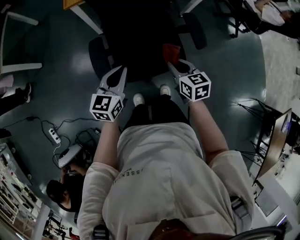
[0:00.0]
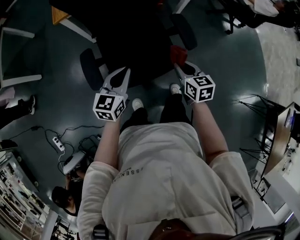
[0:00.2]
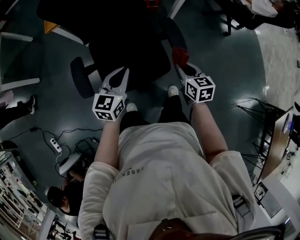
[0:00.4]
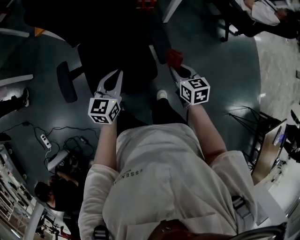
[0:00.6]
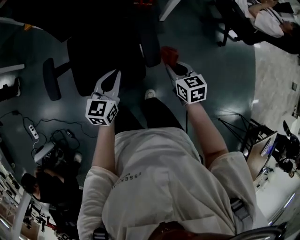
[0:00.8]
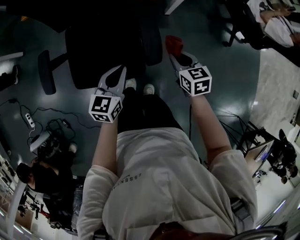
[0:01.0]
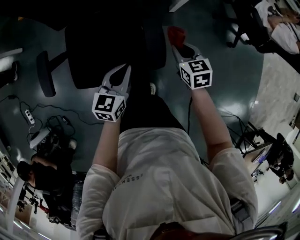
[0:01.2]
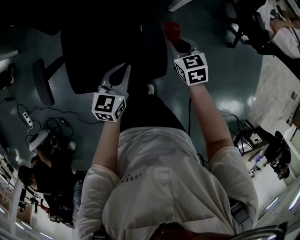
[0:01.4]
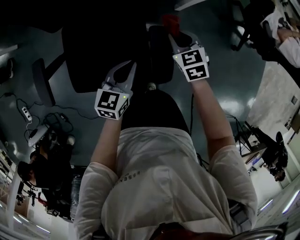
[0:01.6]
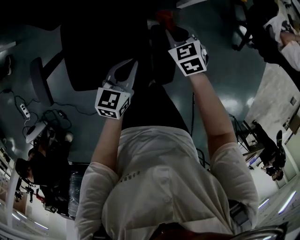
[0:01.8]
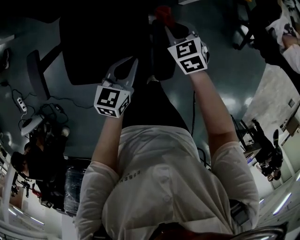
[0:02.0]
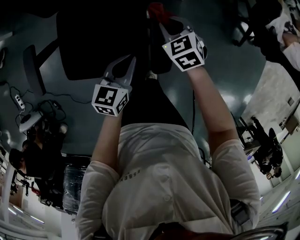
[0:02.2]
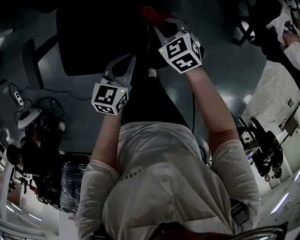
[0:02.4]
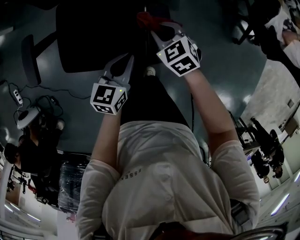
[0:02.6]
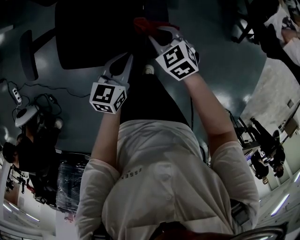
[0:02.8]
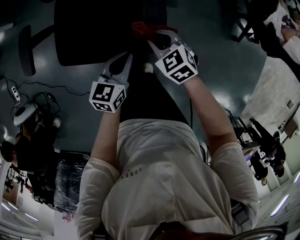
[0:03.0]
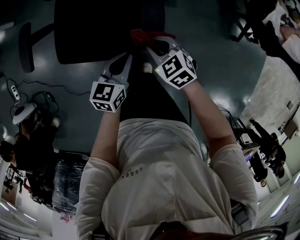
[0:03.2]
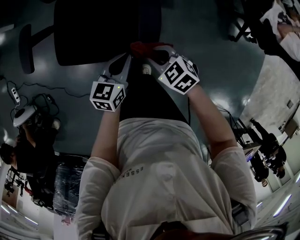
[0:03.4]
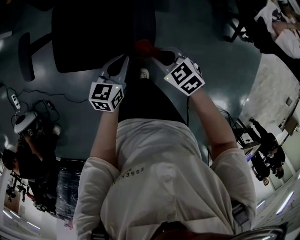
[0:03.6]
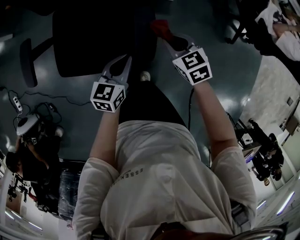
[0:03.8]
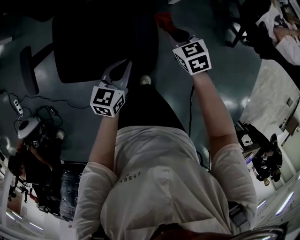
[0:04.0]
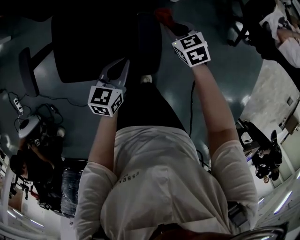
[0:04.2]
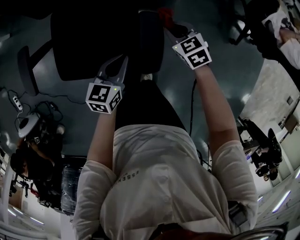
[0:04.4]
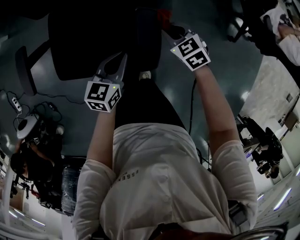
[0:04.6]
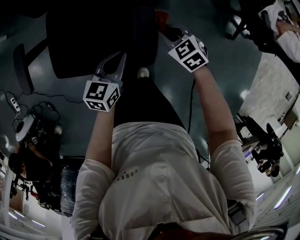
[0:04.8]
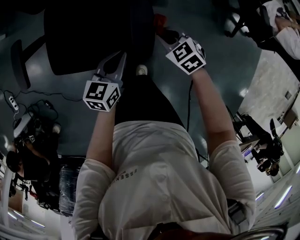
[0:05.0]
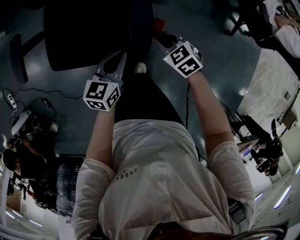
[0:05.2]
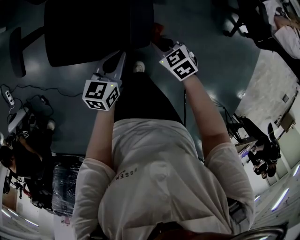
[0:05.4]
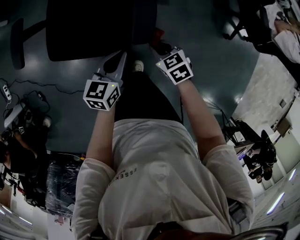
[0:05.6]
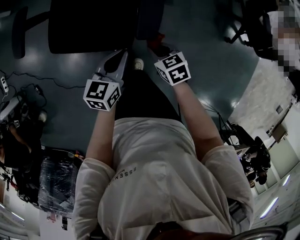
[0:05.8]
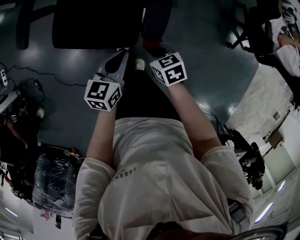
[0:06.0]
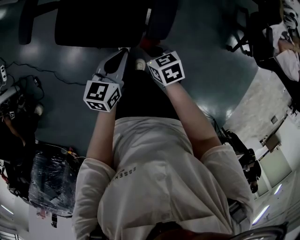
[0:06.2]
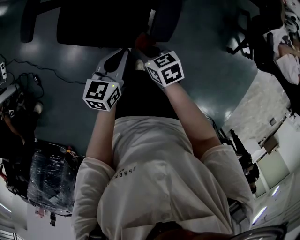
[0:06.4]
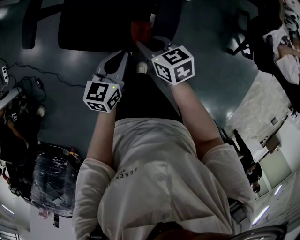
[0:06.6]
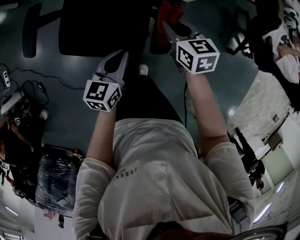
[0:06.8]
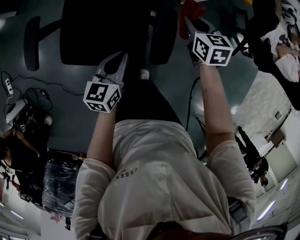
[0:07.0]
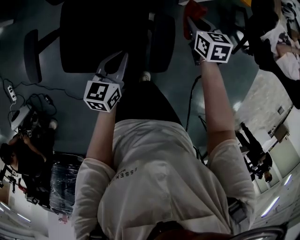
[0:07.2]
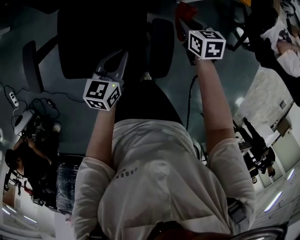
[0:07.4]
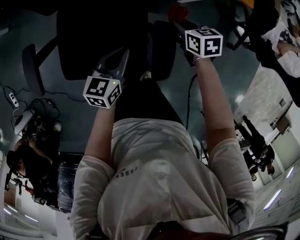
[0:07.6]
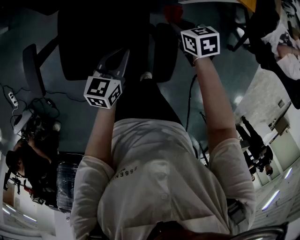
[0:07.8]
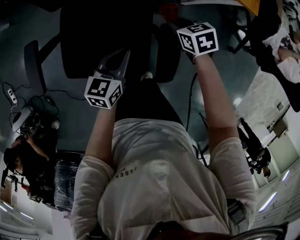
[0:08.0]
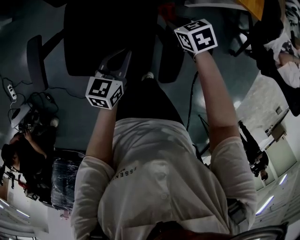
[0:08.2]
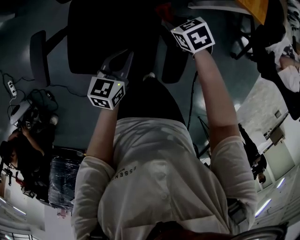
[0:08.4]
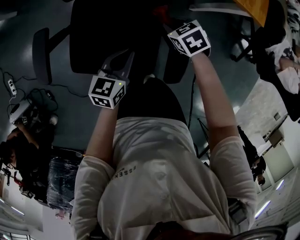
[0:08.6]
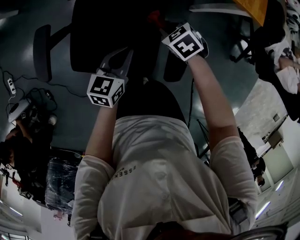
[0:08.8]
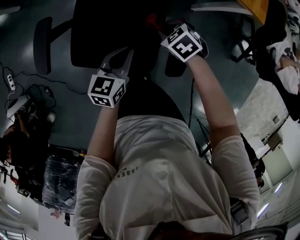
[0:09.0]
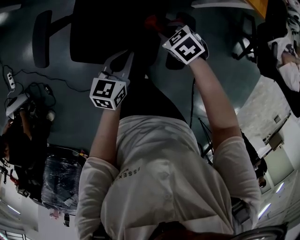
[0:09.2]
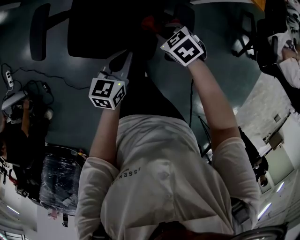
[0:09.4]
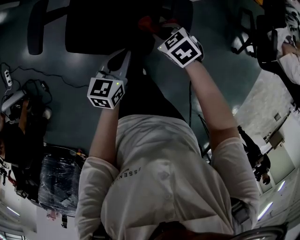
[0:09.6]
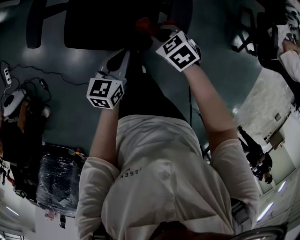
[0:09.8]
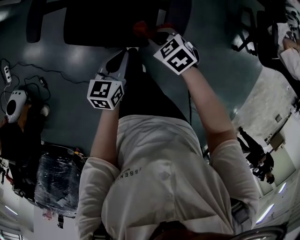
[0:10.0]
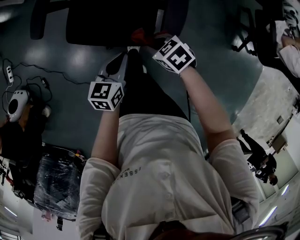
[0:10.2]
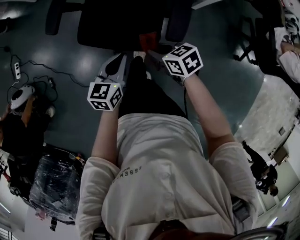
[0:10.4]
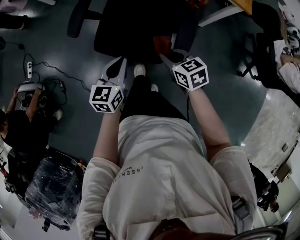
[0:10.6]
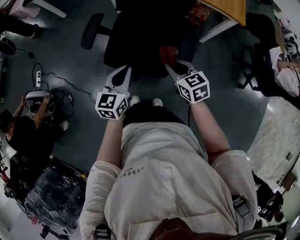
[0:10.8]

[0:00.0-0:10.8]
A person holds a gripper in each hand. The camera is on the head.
0:00.0 to 0:01.6: The right gripper is displaced forward and to the right by roughly 35 cm, and turns by roughly 30 degrees; the left gripper travels to the right and forward by about 35 cm.
0:01.6 to 0:03.0: The two grippers go roughly 10 cm backward. The right gripper swivels some 20 degrees.
0:03.0 to 0:04.6: The right gripper is displaced forward and to the right by approximately 10 cm. The left gripper is displaced forward by about 5 cm.
0:04.6 to 0:06.2: The right gripper is displaced backward and to the left by roughly 20 cm. The left gripper goes approximately 10 cm backward.
0:06.2 to 0:07.8: The left gripper shifts by roughly 20 cm; the right gripper goes upward and returns, about 10 cm each way.
0:07.8 to 0:09.2: The right gripper shifts some 15 cm to the left and backward, and turns by about 40 degrees; the left gripper is displaced backward and to the left by approximately 10 cm.
0:09.2 to 0:10.8: The left gripper moves upward, to the left and backward, some 20 cm, and turns by about 20 degrees. The right gripper shifts roughly 25 cm upward, backward and to the left, and angles its fingers upward, by about 30 degrees.

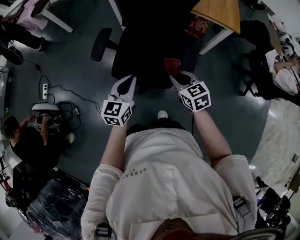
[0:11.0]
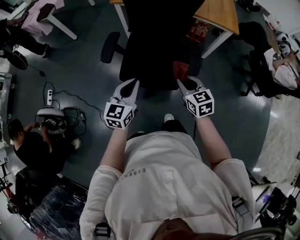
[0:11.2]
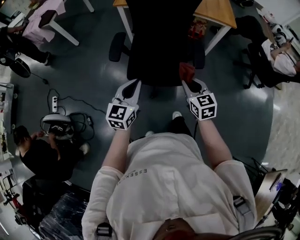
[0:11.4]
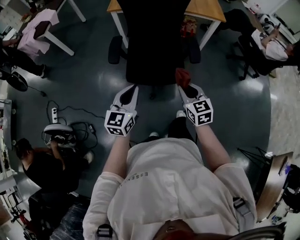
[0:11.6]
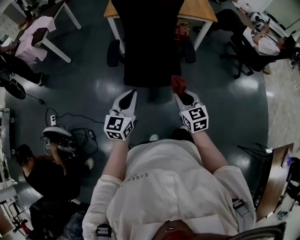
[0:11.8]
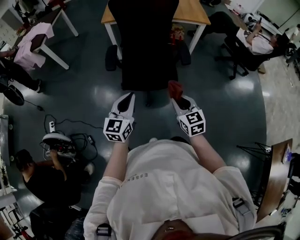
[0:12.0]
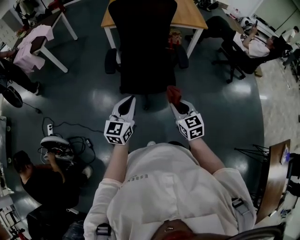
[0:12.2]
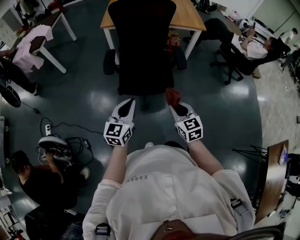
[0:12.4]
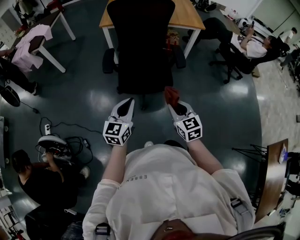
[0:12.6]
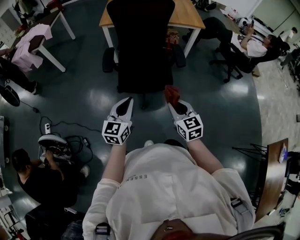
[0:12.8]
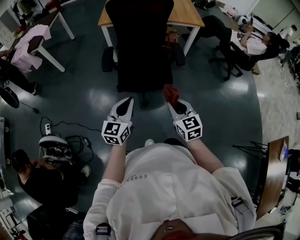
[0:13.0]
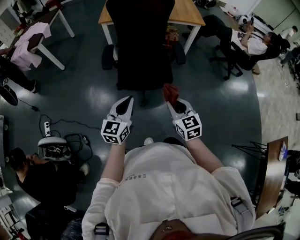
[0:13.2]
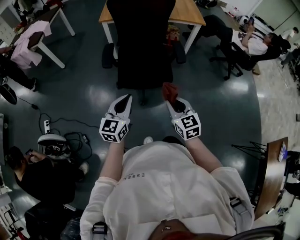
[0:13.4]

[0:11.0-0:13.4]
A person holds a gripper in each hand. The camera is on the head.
0:11.0 to 0:12.2: The left gripper shifts approximately 20 cm backward, to the left and upward, while the right gripper travels backward and to the left by about 25 cm, and turns by about 30 degrees.
0:12.2 to 0:13.4: The grippers move only a little.

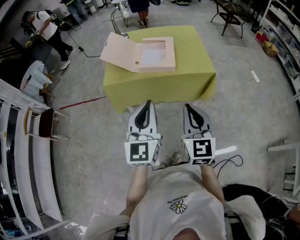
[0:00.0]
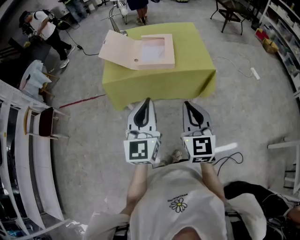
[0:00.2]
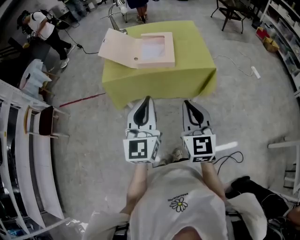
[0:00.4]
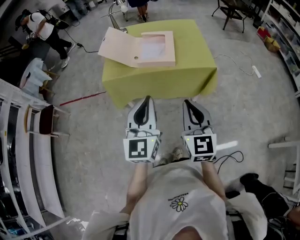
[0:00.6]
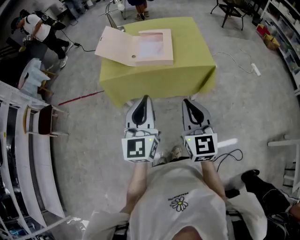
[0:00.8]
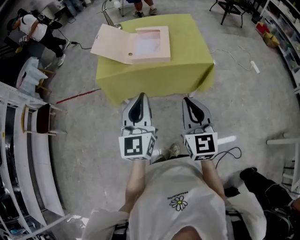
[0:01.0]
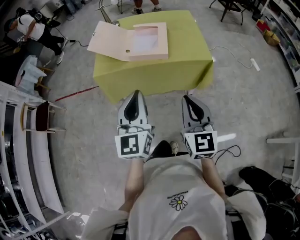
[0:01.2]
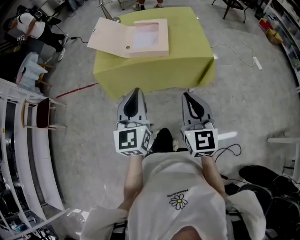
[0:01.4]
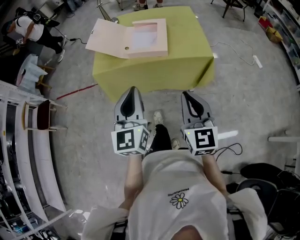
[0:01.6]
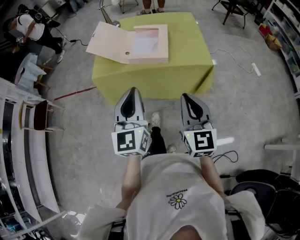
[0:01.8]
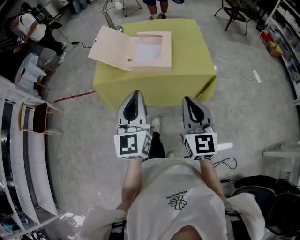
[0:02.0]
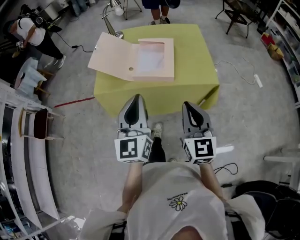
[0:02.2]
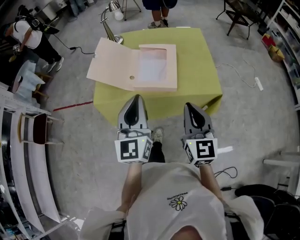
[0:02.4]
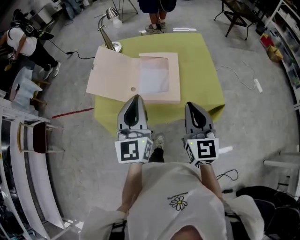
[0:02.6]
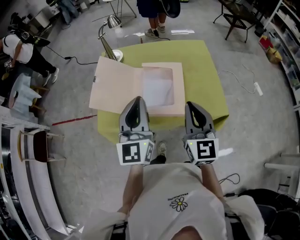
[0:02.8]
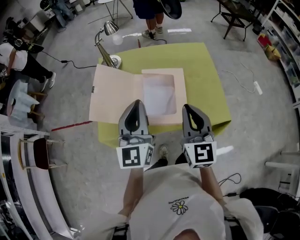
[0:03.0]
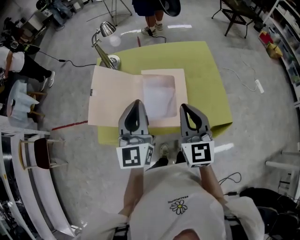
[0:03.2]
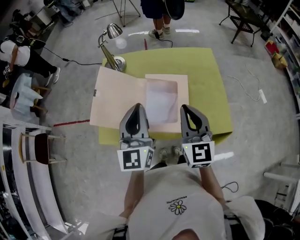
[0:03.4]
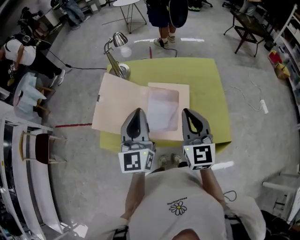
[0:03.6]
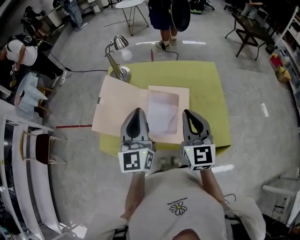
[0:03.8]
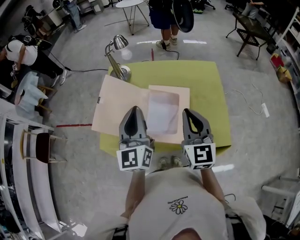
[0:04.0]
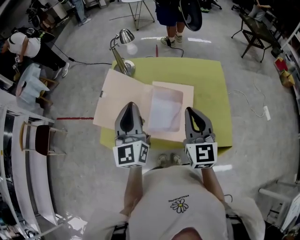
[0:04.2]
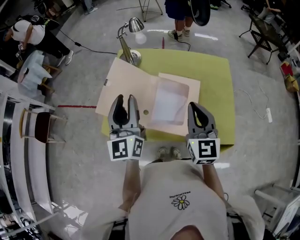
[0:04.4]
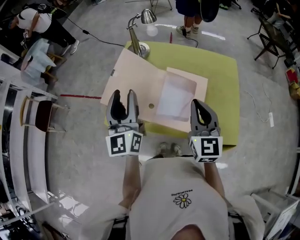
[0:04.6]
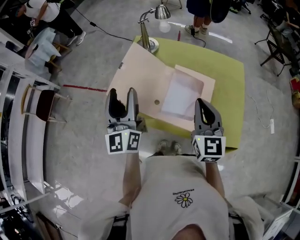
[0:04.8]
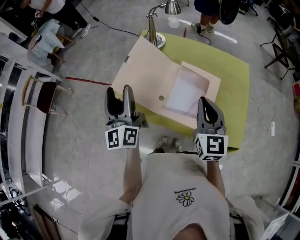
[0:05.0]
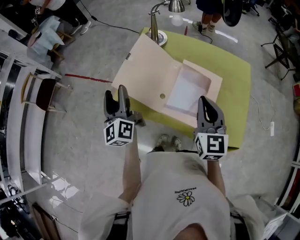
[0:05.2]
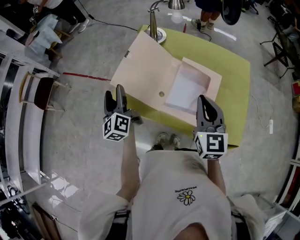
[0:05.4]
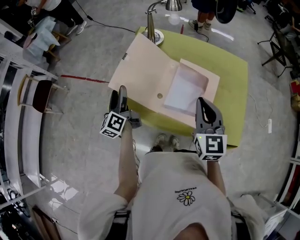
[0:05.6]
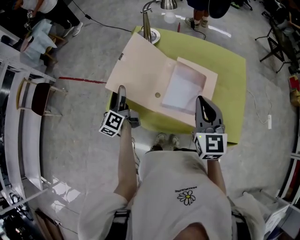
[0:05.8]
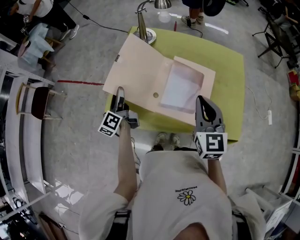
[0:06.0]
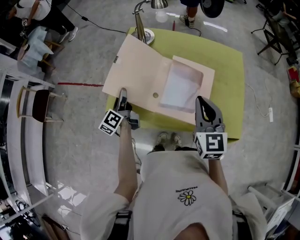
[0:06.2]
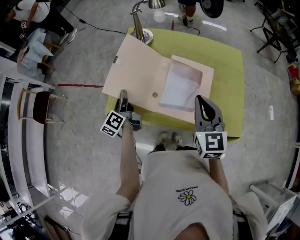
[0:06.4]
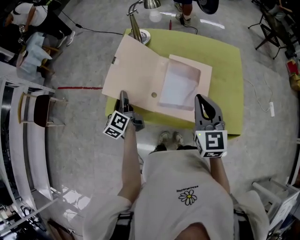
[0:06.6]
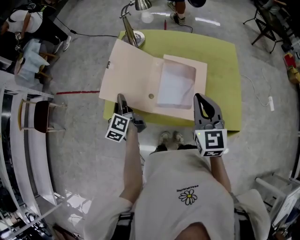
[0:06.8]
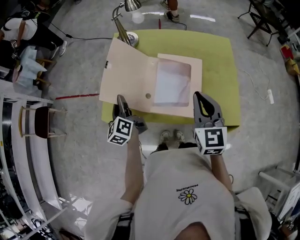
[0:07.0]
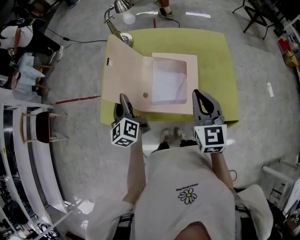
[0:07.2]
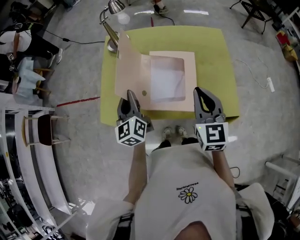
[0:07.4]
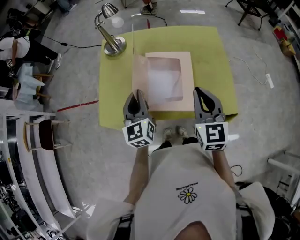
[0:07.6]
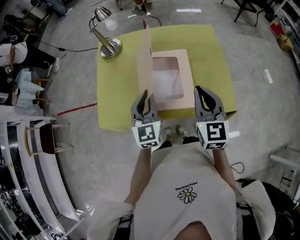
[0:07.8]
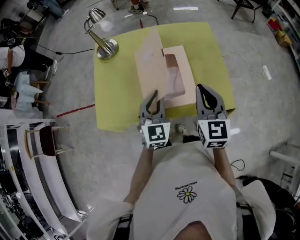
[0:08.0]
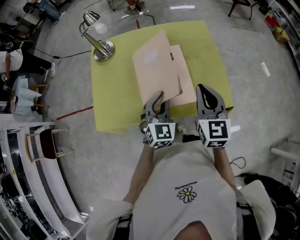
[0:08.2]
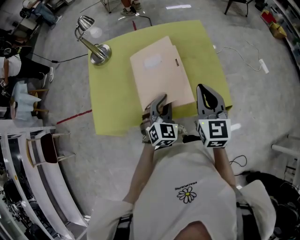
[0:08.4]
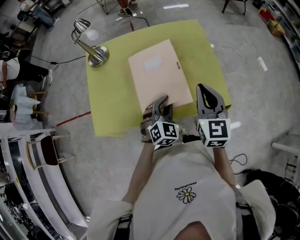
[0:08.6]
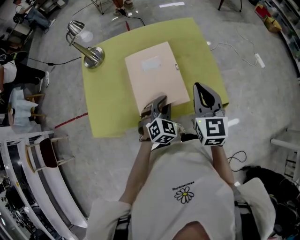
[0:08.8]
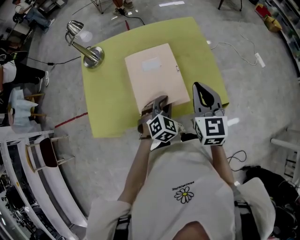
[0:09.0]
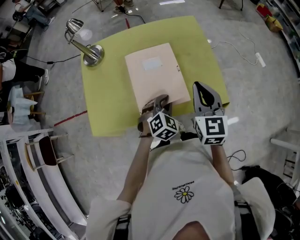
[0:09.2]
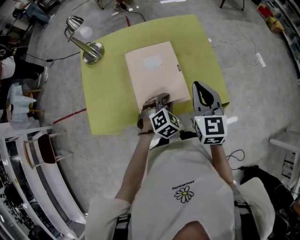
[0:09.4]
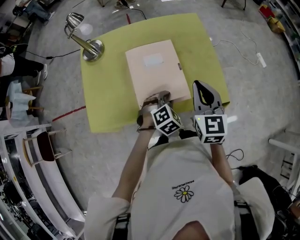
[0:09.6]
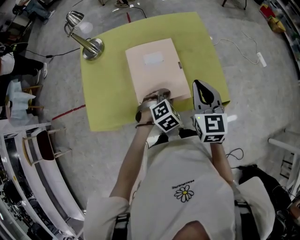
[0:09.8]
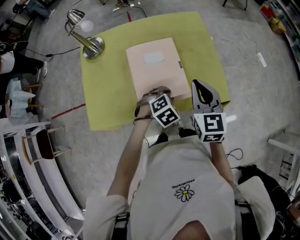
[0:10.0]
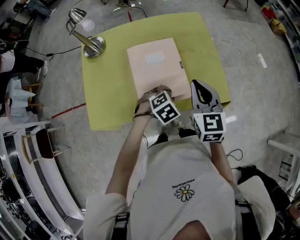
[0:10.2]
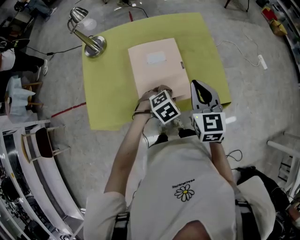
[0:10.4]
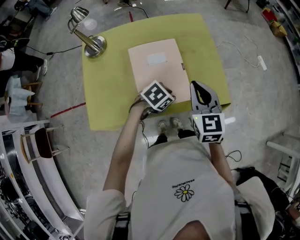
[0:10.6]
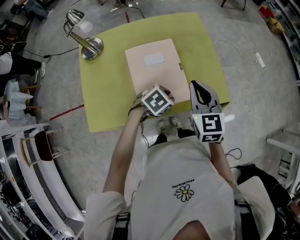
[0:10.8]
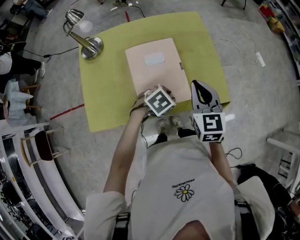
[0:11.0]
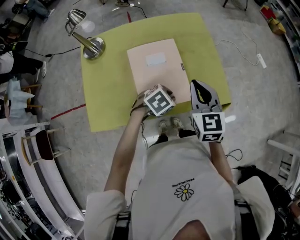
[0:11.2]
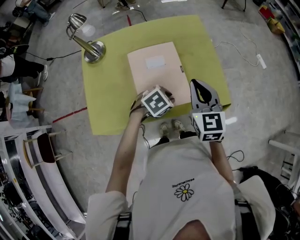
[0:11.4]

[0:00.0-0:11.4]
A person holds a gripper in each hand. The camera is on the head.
0:00.0 to 0:01.4: The left gripper changes place by approximately 5 cm, while the right gripper moves some 5 cm.
0:01.4 to 0:02.8: Both grippers move forward, approximately 35 cm.
0:02.8 to 0:04.2: Both grippers move forward, approximately 10 cm.
0:04.2 to 0:05.6: The right gripper goes about 5 cm to the left. Meanwhile the left gripper shifts about 25 cm to the left and downward, changes its angle by roughly 40 degrees, and opens up.
0:05.6 to 0:07.2: The right gripper shifts approximately 5 cm to the right. Meanwhile the left gripper heads to the right, covering some 10 cm, and closes up.
0:07.2 to 0:08.6: The left gripper shifts by roughly 30 cm, and twists some 70 degrees clockwise, seen from behind. Meanwhile the right gripper changes place by approximately 10 cm.
0:08.6 to 0:10.0: The left gripper travels downward by about 5 cm, and tilts its fingers some 30 degrees downward.
0:10.0 to 0:11.4: The left gripper turns by about 20 degrees.
